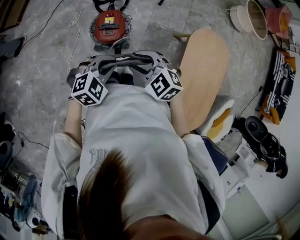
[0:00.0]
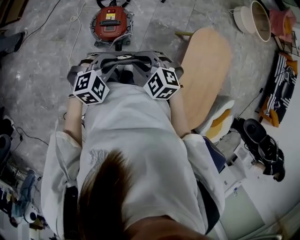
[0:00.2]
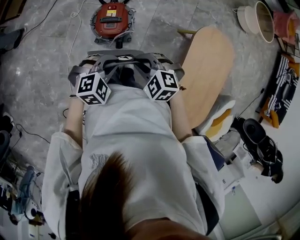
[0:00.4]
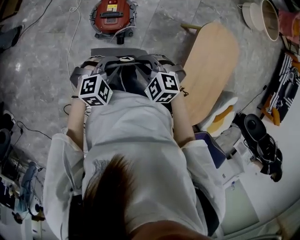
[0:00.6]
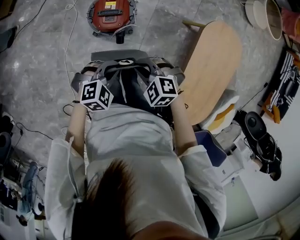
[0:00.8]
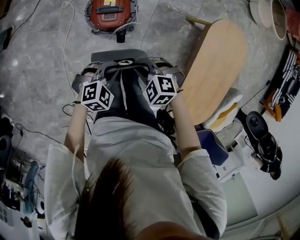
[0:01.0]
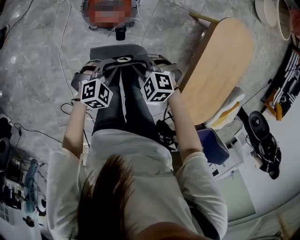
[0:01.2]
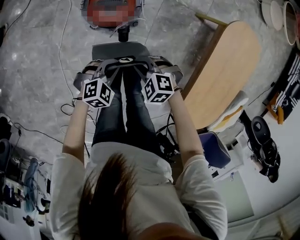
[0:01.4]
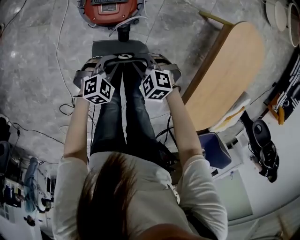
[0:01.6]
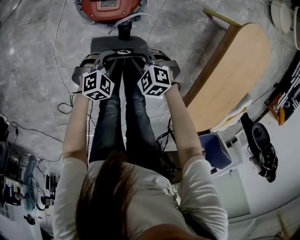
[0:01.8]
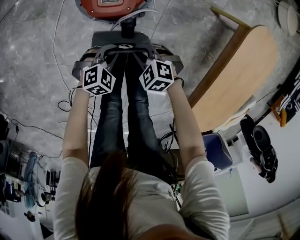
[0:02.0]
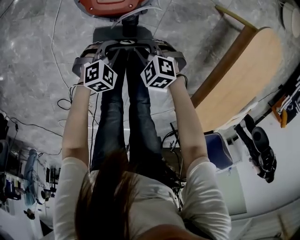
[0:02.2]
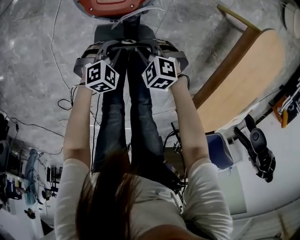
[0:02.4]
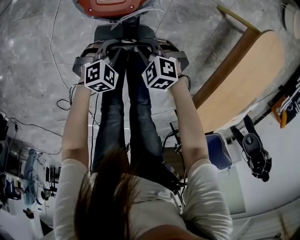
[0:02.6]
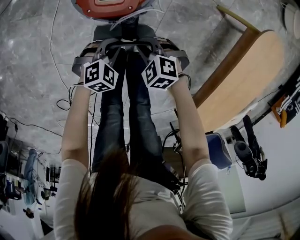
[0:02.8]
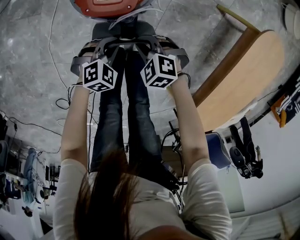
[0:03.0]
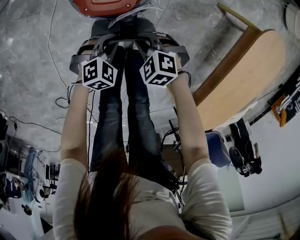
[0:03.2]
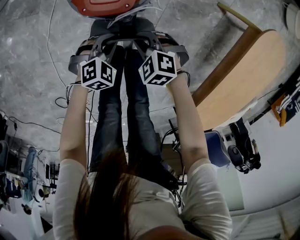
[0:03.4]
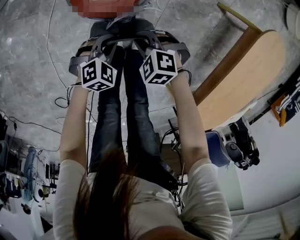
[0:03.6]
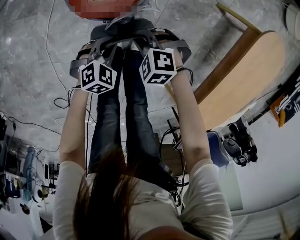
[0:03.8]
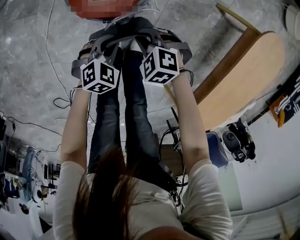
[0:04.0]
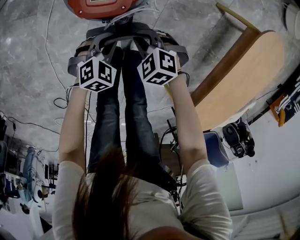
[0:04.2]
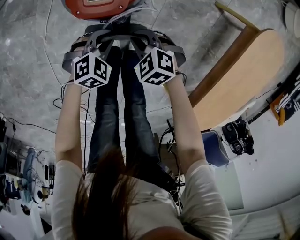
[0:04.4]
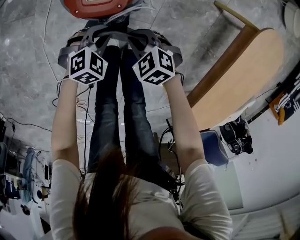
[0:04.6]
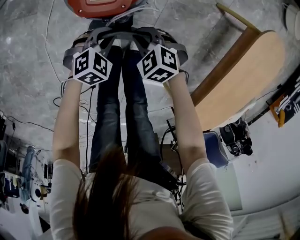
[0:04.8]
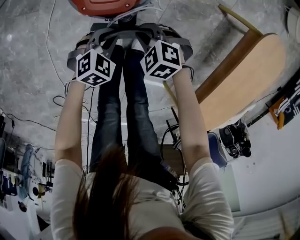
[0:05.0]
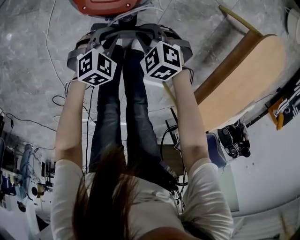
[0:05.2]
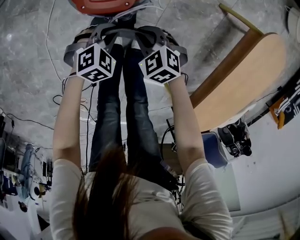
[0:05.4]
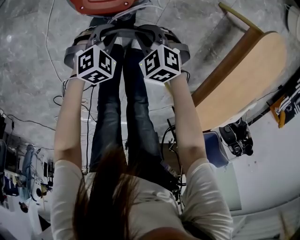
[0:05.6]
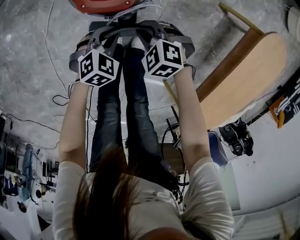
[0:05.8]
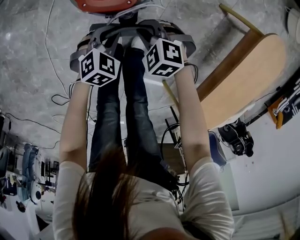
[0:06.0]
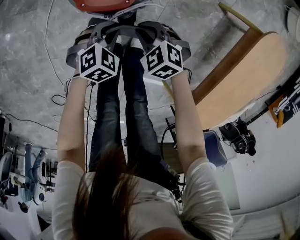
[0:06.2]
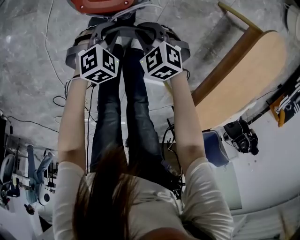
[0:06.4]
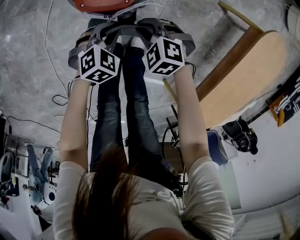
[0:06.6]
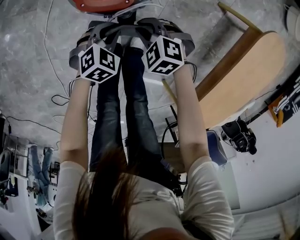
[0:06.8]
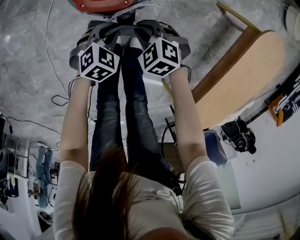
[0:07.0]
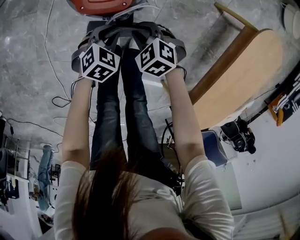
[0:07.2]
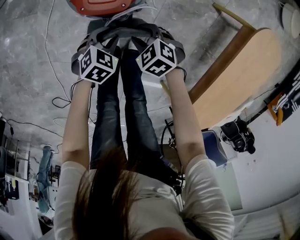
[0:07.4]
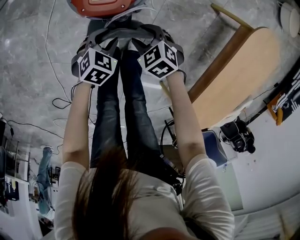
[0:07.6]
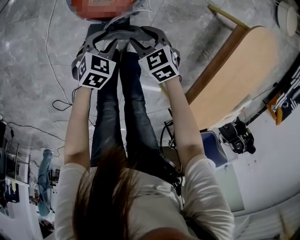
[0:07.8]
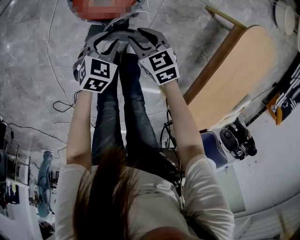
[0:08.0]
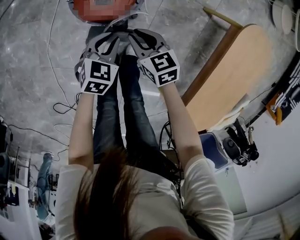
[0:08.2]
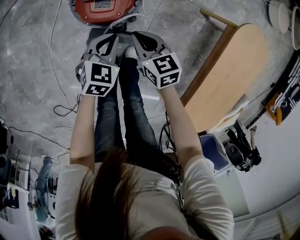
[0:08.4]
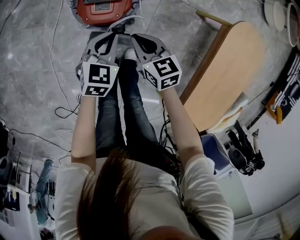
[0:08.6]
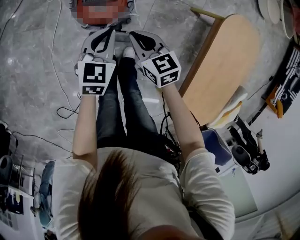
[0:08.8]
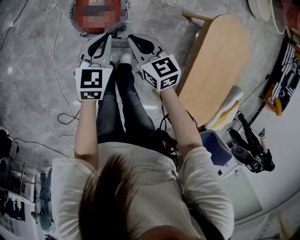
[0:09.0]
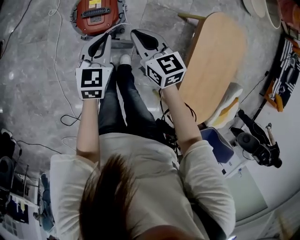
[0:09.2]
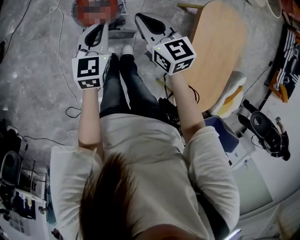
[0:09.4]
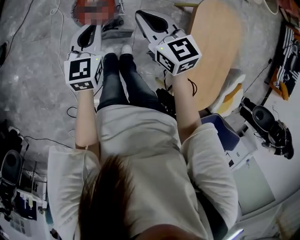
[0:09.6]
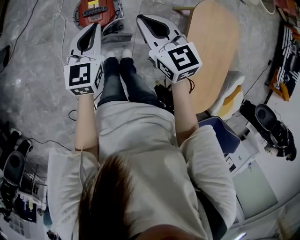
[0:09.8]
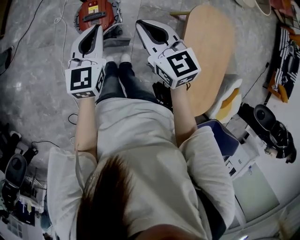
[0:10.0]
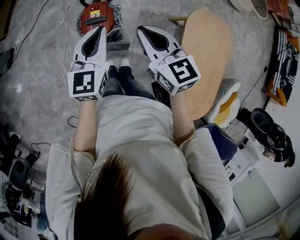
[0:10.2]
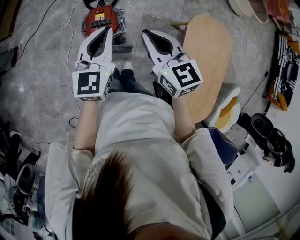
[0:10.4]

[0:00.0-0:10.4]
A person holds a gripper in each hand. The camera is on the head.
0:00.0 to 0:01.4: The two grippers go approximately 30 cm downward. The right gripper turns by approximately 20 degrees, and closes its fingers.
0:01.4 to 0:03.0: The grippers both shift downward by about 15 cm.
0:03.0 to 0:06.0: The grippers move only a little.
0:06.0 to 0:07.4: The left gripper opens up; the right gripper opens.
0:07.4 to 0:09.0: The two grippers go approximately 25 cm upward. The left gripper turns by roughly 40 degrees, and closes its fingers. The right gripper points its fingers some 30 degrees further upward, and closes up.
0:09.0 to 0:10.4: Both grippers travel together upward, approximately 30 cm. The left gripper swivels about 20 degrees.

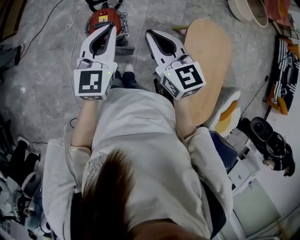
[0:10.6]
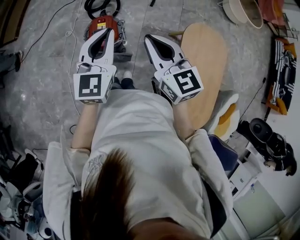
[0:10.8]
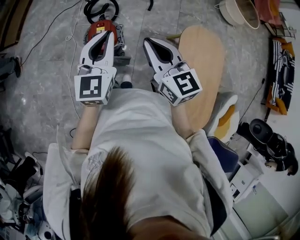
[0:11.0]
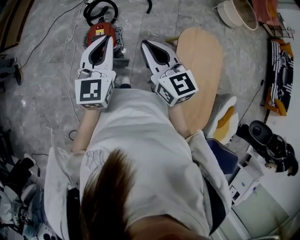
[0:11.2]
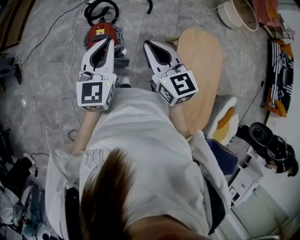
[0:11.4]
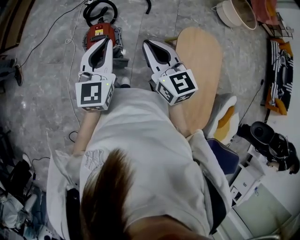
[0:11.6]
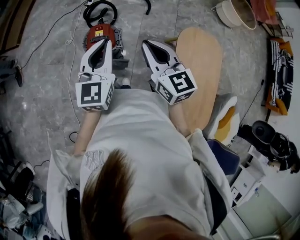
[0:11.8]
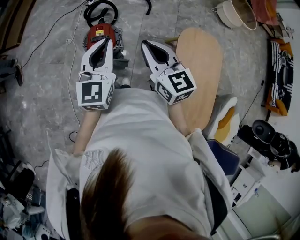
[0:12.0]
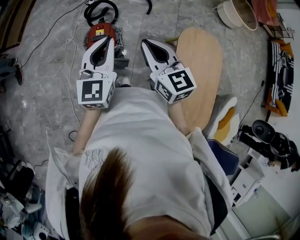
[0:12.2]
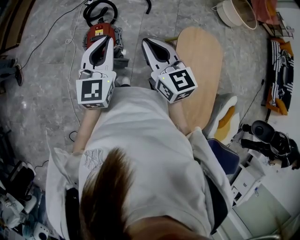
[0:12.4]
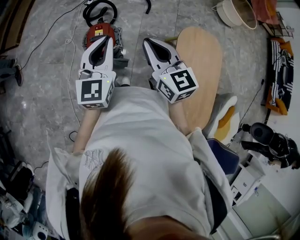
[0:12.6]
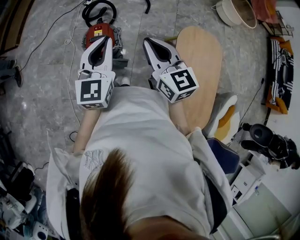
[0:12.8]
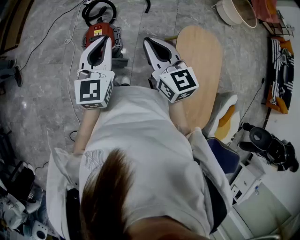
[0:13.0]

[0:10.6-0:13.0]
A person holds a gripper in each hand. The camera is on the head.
0:10.6 to 0:11.8: The left gripper shifts by some 5 cm.
0:11.8 to 0:13.0: The grippers stay close to where they were, moving slightly.

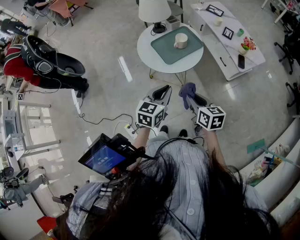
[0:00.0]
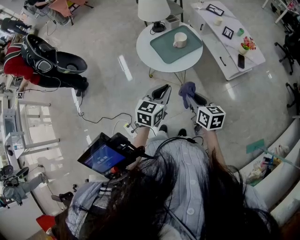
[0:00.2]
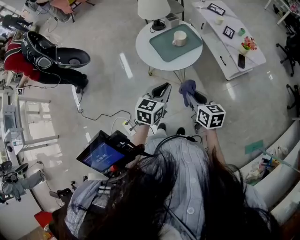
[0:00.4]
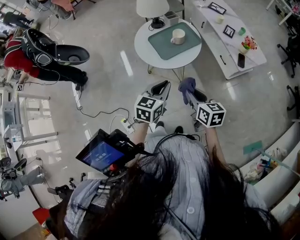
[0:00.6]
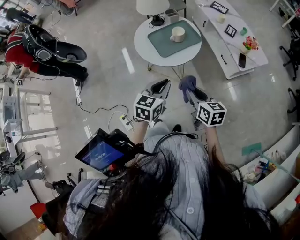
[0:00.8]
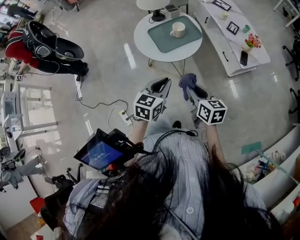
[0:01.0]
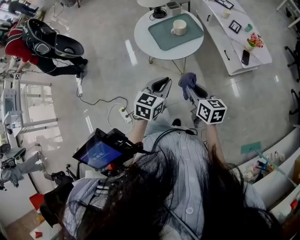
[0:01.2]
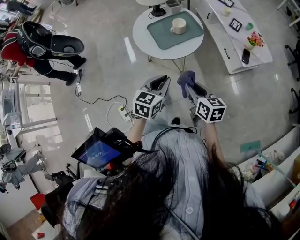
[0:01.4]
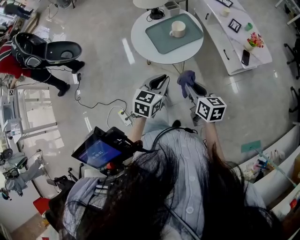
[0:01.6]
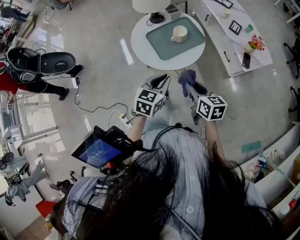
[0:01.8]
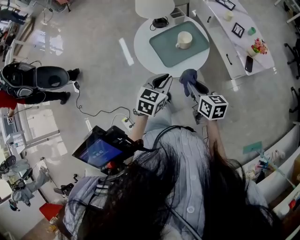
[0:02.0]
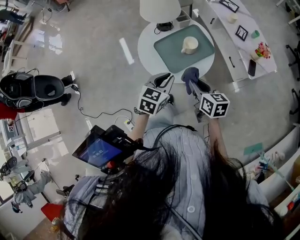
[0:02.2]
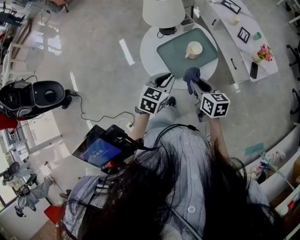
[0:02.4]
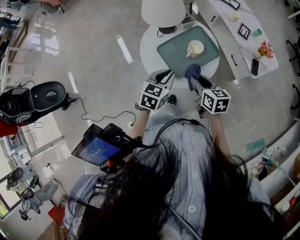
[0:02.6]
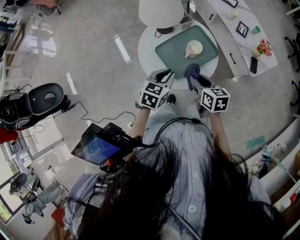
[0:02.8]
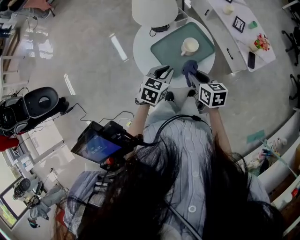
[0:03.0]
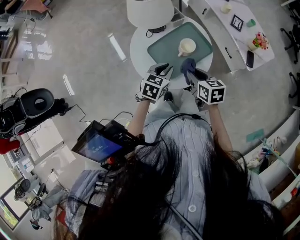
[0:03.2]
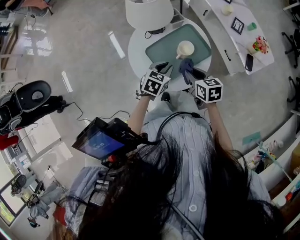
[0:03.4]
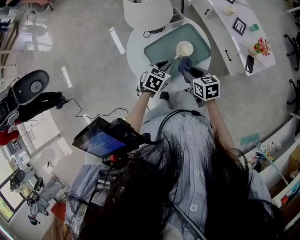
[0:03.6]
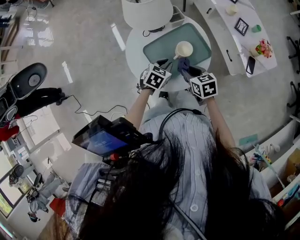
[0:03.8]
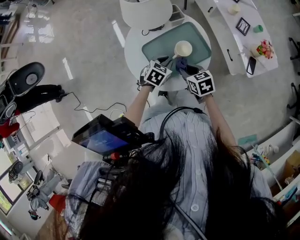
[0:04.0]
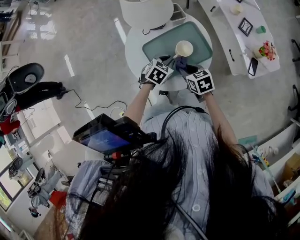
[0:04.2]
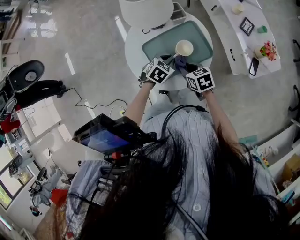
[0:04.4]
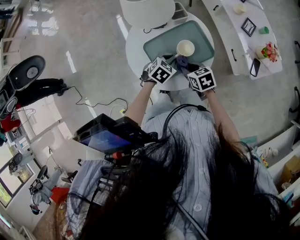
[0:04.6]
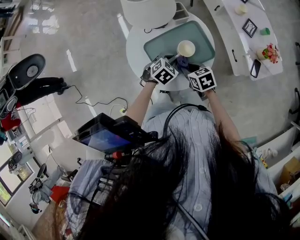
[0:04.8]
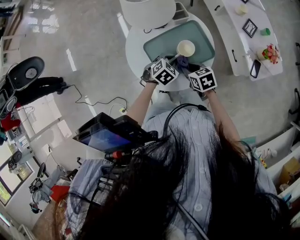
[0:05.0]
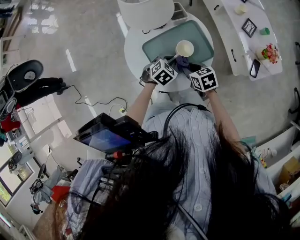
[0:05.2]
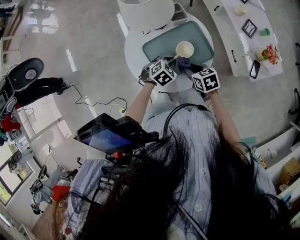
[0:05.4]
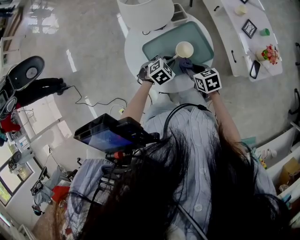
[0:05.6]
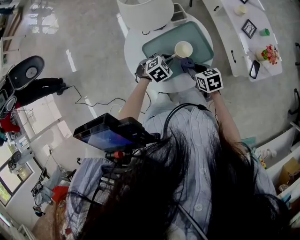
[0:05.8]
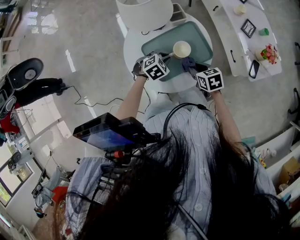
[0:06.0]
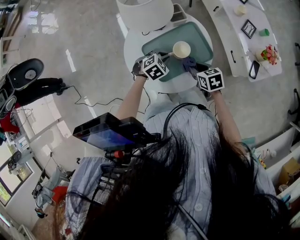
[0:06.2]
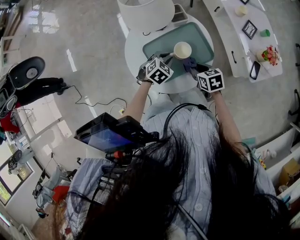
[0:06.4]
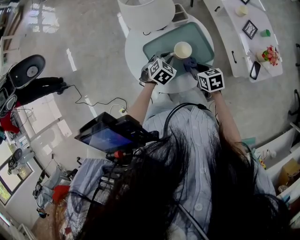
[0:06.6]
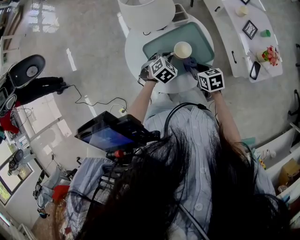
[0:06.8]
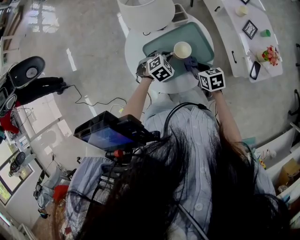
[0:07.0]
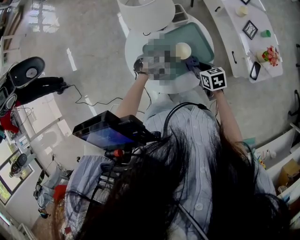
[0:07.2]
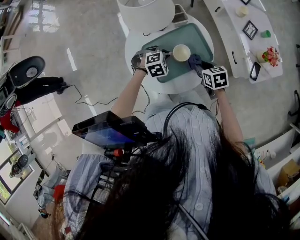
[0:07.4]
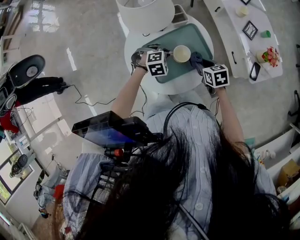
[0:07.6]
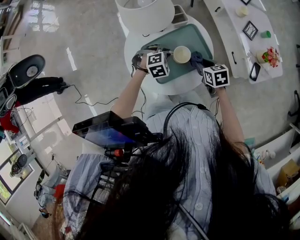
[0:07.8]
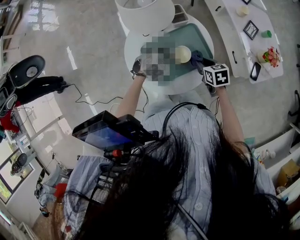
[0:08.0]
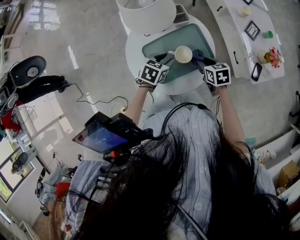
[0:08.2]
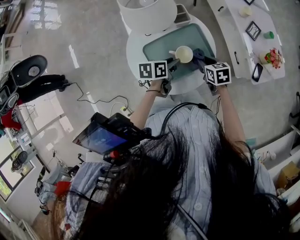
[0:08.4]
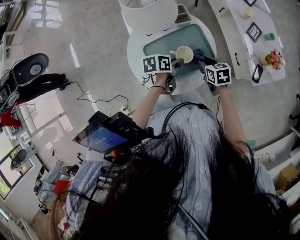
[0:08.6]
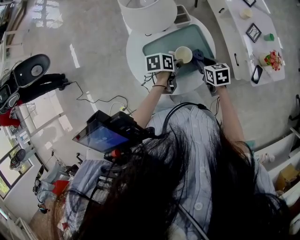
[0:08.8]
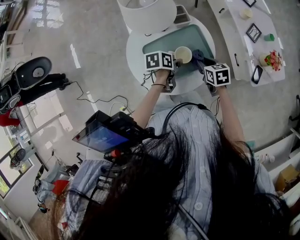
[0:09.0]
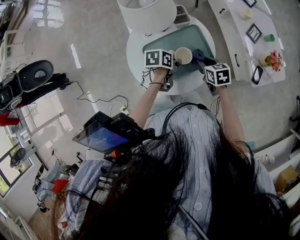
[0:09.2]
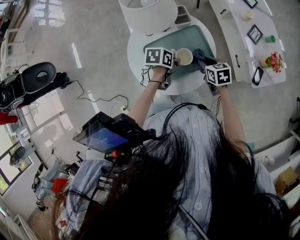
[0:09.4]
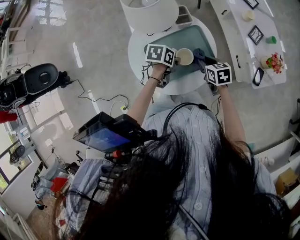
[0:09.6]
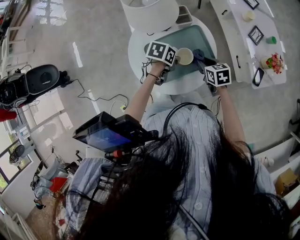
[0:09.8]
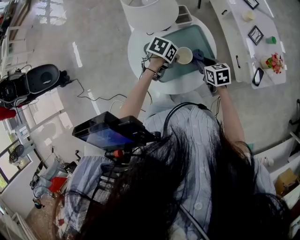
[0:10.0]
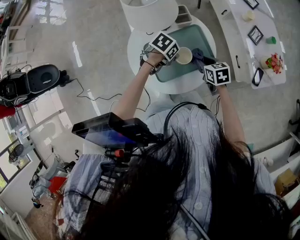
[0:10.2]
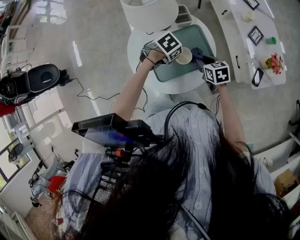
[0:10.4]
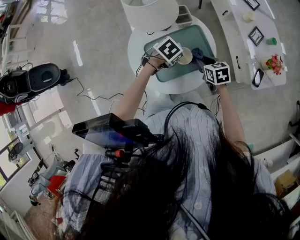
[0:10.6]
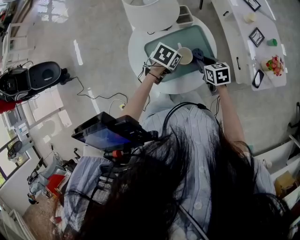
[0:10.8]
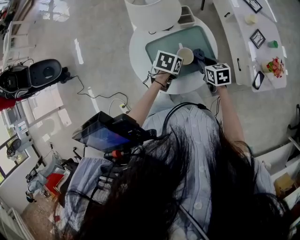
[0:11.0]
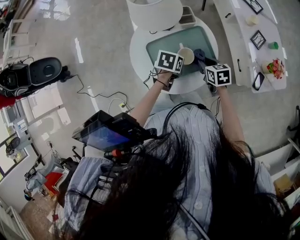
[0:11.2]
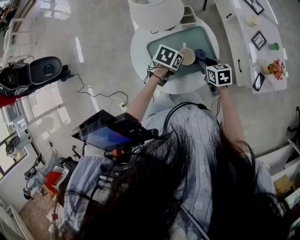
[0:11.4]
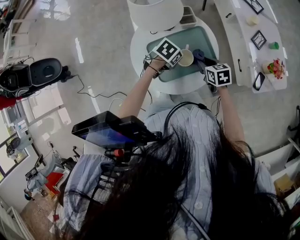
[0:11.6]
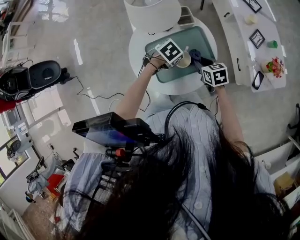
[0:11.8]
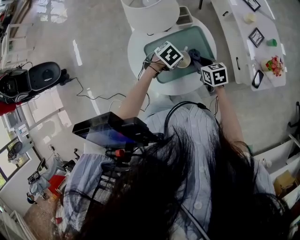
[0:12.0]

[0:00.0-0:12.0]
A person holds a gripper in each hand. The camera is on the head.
0:00.0 to 0:01.6: The left gripper shifts by approximately 5 cm, while the right gripper changes place by roughly 5 cm.
0:01.6 to 0:03.0: The left gripper heads forward, covering about 20 cm. Meanwhile the right gripper is displaced forward and to the left by roughly 25 cm.
0:03.0 to 0:04.4: The left gripper moves downward, forward and to the right, roughly 15 cm. Meanwhile the right gripper moves downward and forward, about 10 cm, and swivels roughly 30 degrees.
0:04.4 to 0:06.0: The left gripper turns by approximately 20 degrees, while the right gripper is displaced to the right by about 5 cm.
0:06.0 to 0:07.6: The left gripper changes its angle by some 20 degrees.
0:07.6 to 0:09.0: The left gripper twists about 100 degrees counterclockwise, seen from behind.
0:09.0 to 0:10.4: The left gripper rolls clockwise, seen from behind, by some 50 degrees.
